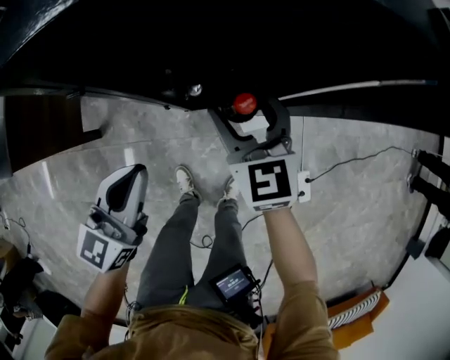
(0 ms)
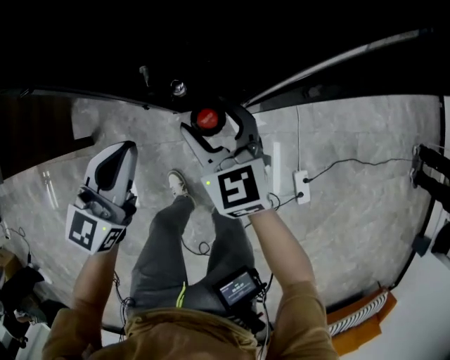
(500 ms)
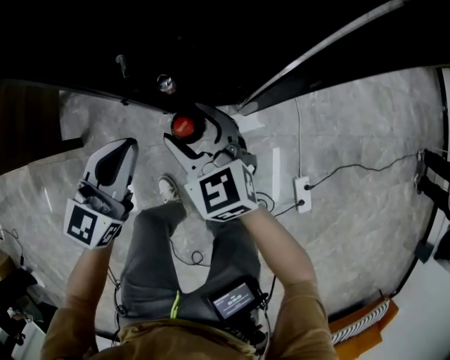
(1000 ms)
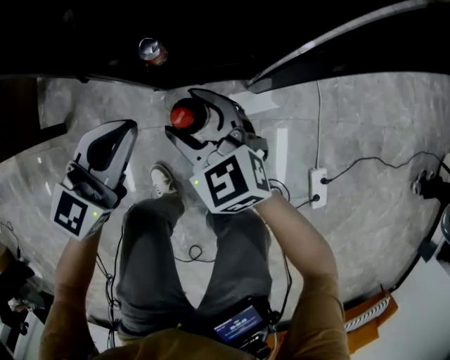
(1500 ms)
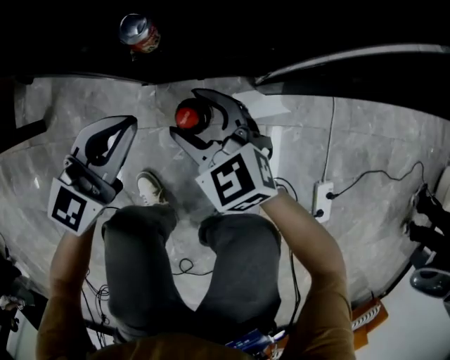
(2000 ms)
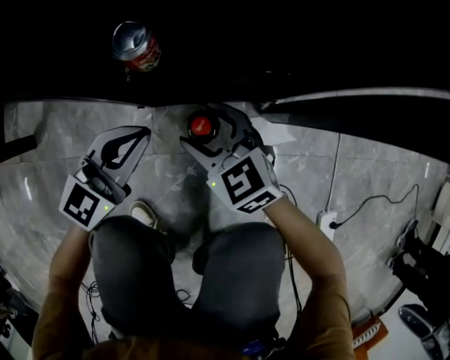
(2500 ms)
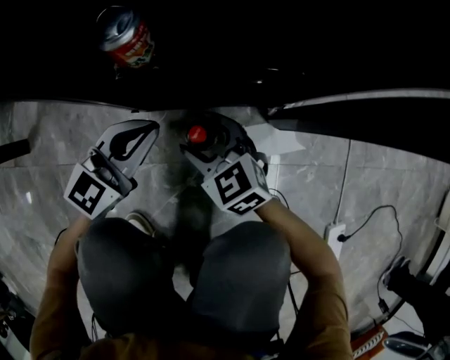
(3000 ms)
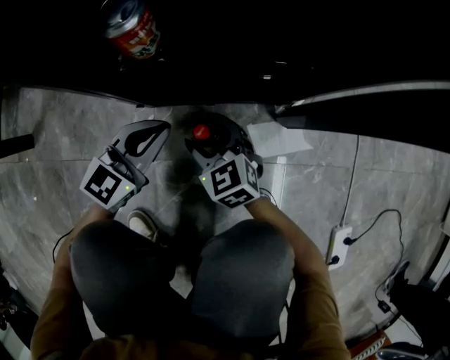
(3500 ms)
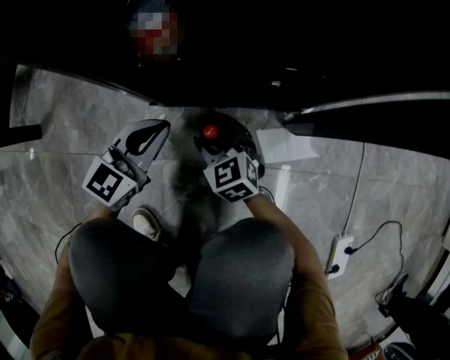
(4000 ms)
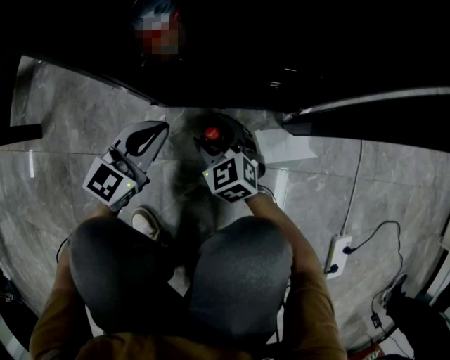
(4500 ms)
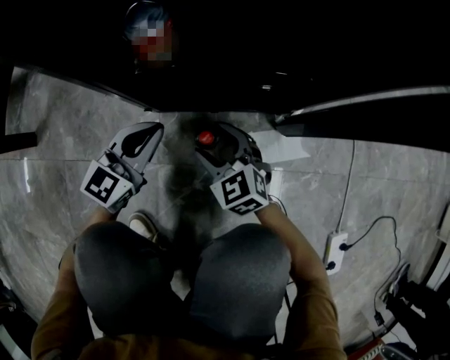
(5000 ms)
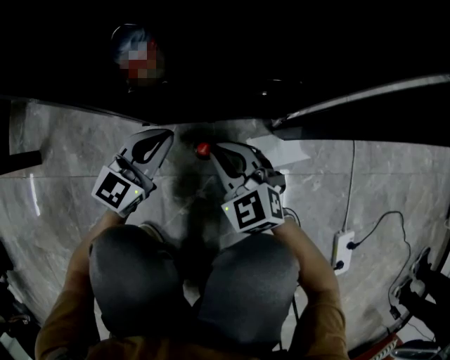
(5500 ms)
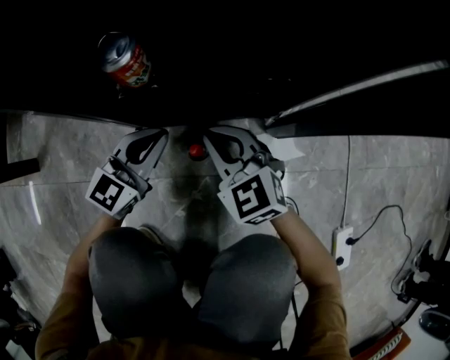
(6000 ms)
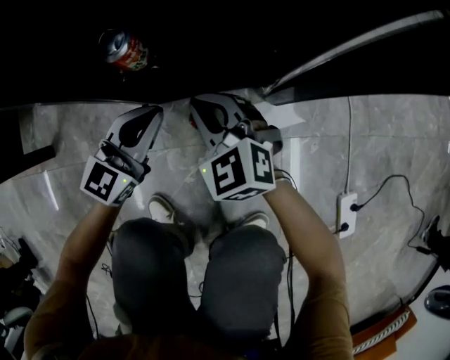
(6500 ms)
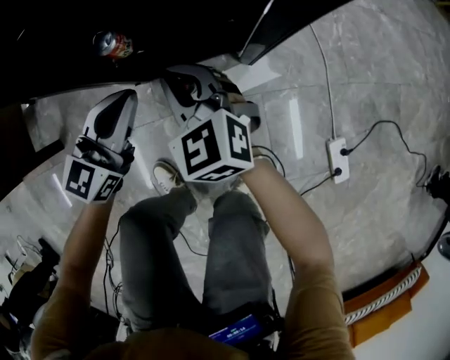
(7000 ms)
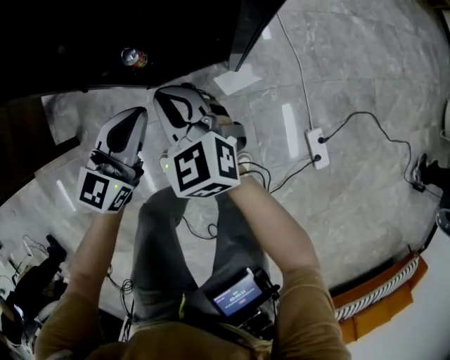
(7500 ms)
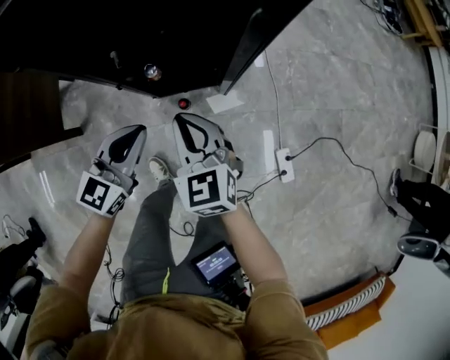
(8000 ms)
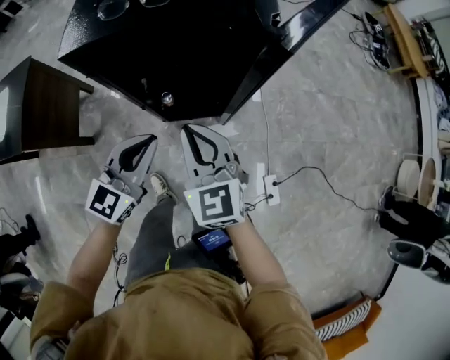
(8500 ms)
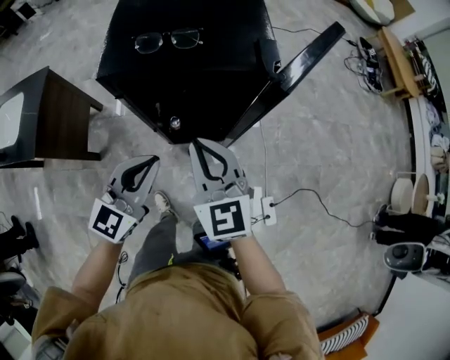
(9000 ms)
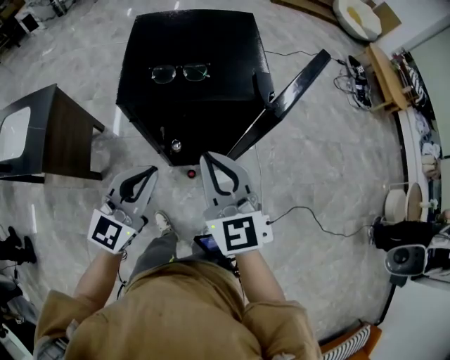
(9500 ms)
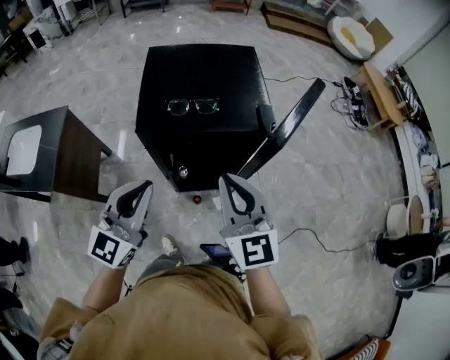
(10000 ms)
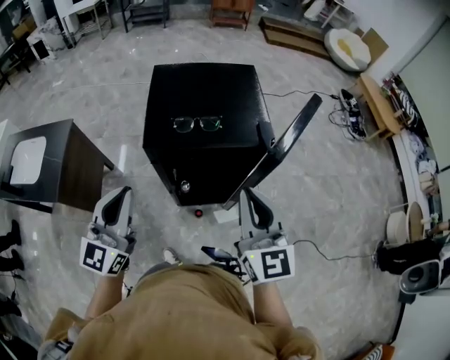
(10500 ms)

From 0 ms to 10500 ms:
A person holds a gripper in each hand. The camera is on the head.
From 0 ms to 2000 ms: The left gripper travels to the right by some 10 cm, goes downward and returns, some 30 cm each way, and turns by about 20 degrees; the right gripper shifts some 15 cm backward, travels downward and back again, approximately 35 cm each way, and turns by some 30 degrees.
From 2000 ms to 4000 ms: Both grippers travel together downward, approximately 20 cm.
From 4000 ms to 6500 ms: The right gripper heads upward, covering roughly 20 cm, and closes up; the left gripper moves upward, approximately 10 cm.
From 6500 ms to 8500 ms: Both grippers travel together upward, approximately 70 cm.
From 8500 ms to 10500 ms: The right gripper heads upward, covering approximately 25 cm, and turns by approximately 20 degrees; the left gripper heads upward and to the left, covering approximately 30 cm, and rotates roughly 20 degrees.

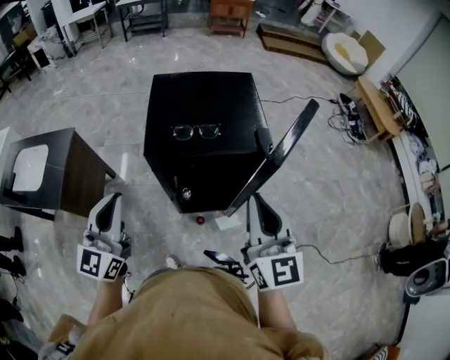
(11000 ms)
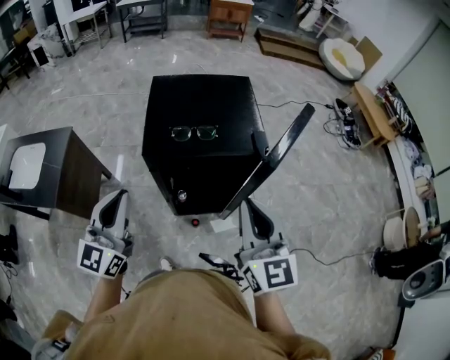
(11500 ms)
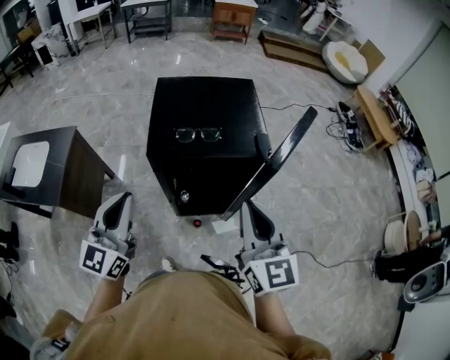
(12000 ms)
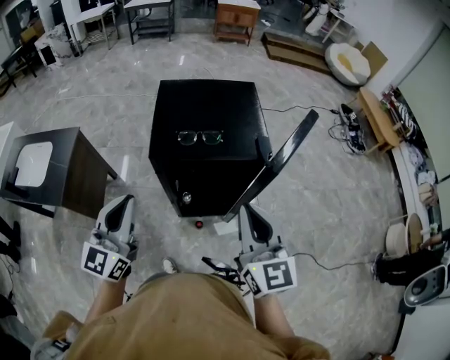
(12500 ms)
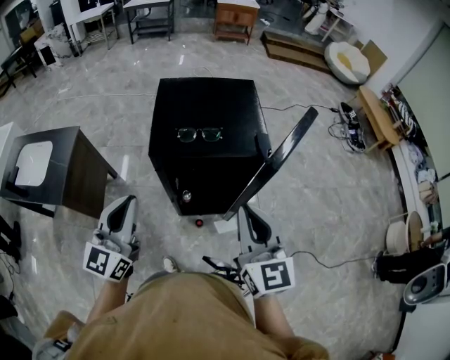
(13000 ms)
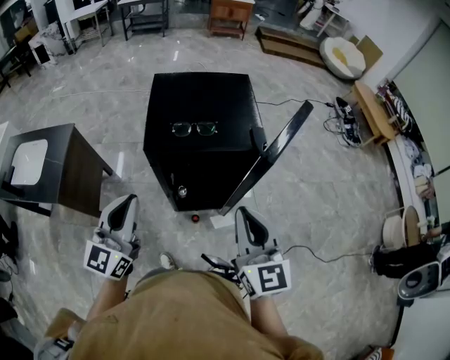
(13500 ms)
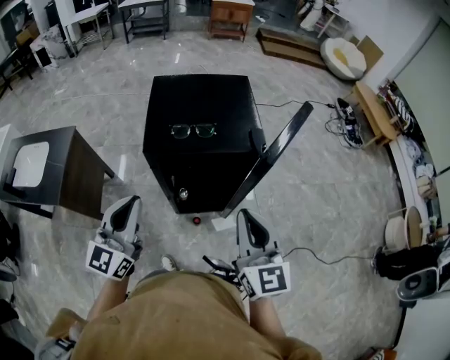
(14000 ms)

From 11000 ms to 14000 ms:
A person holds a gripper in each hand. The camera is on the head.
From 11000 ms to 14000 ms: The grippers move only a little.

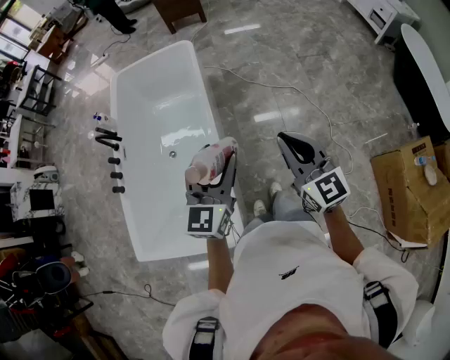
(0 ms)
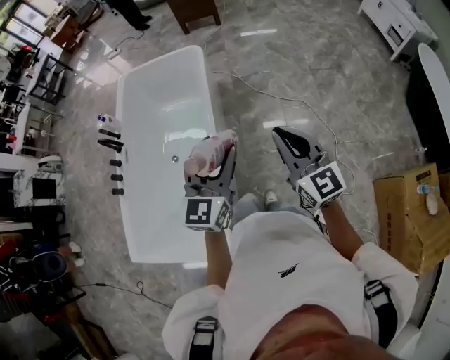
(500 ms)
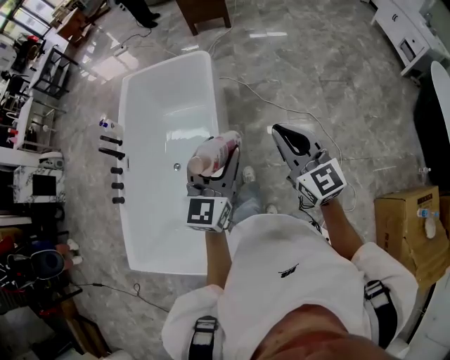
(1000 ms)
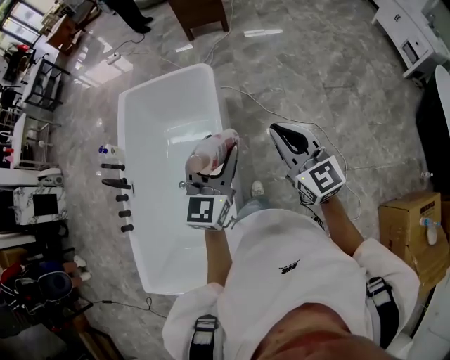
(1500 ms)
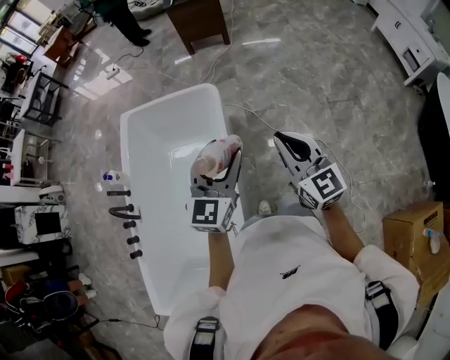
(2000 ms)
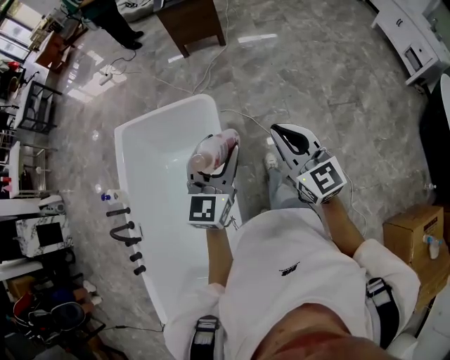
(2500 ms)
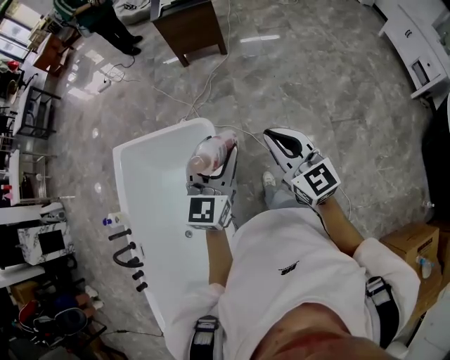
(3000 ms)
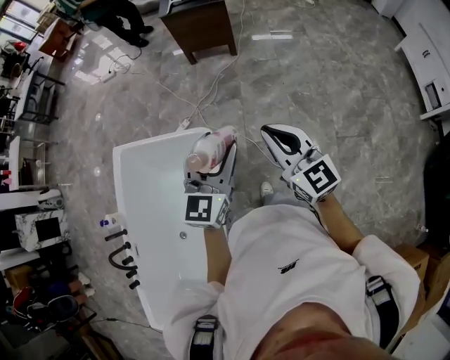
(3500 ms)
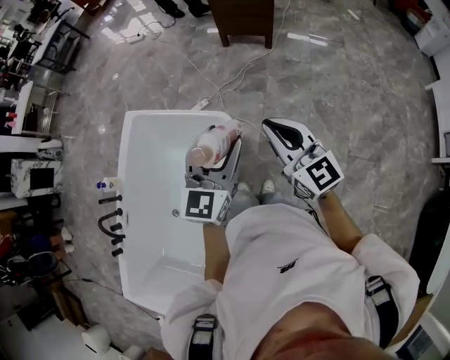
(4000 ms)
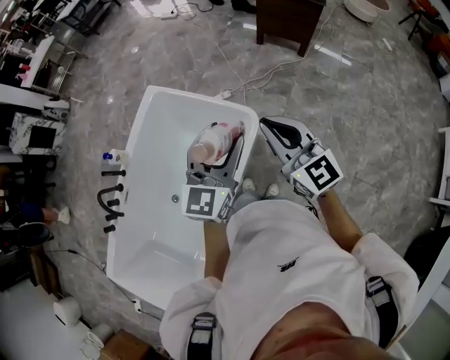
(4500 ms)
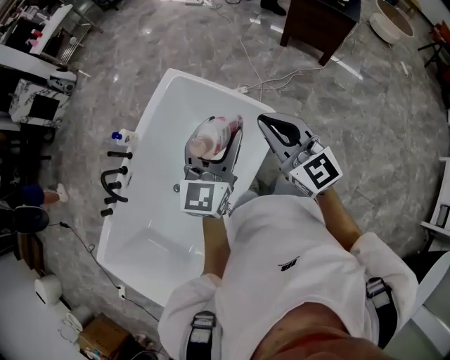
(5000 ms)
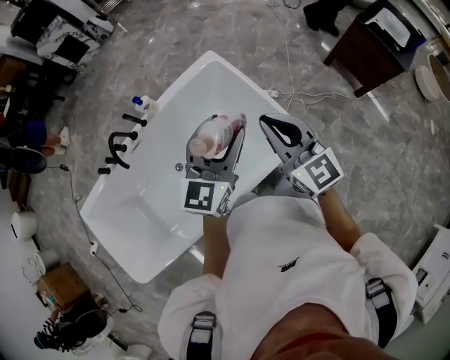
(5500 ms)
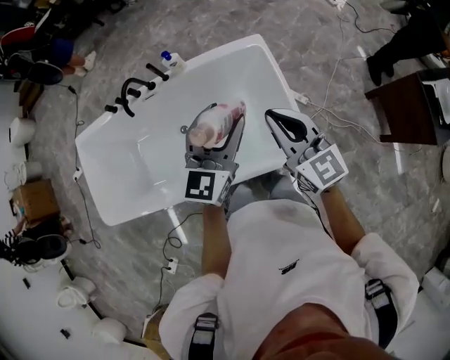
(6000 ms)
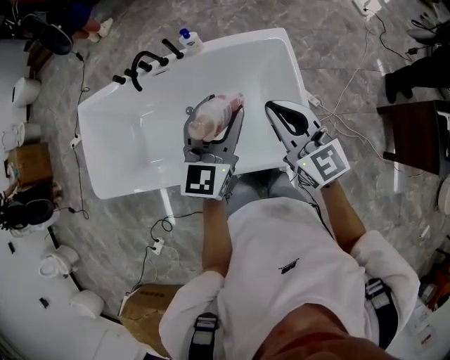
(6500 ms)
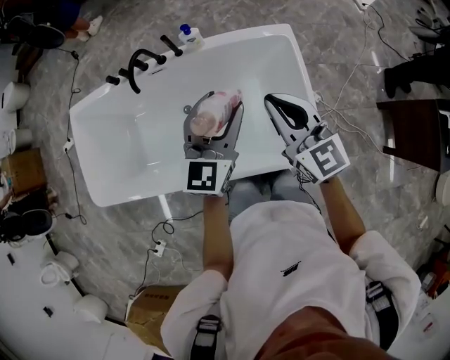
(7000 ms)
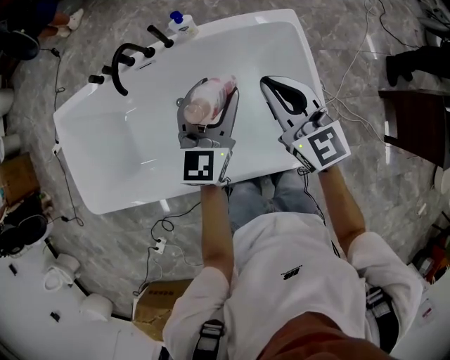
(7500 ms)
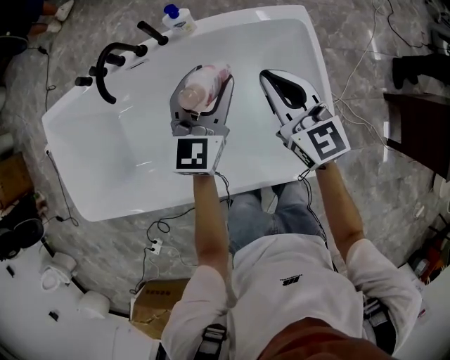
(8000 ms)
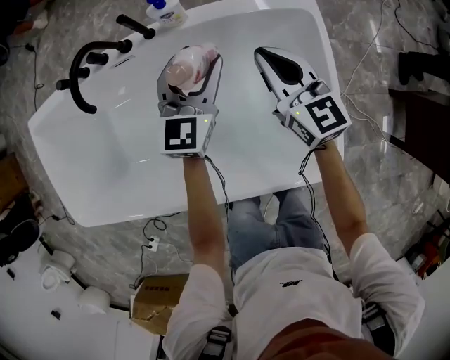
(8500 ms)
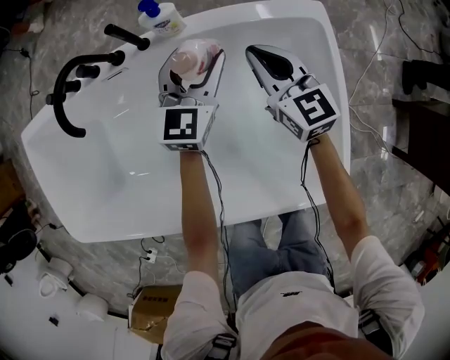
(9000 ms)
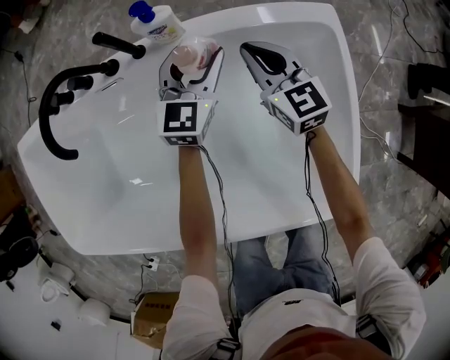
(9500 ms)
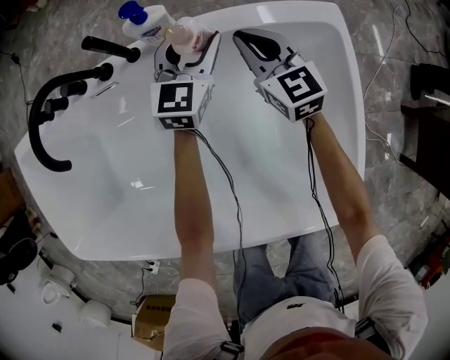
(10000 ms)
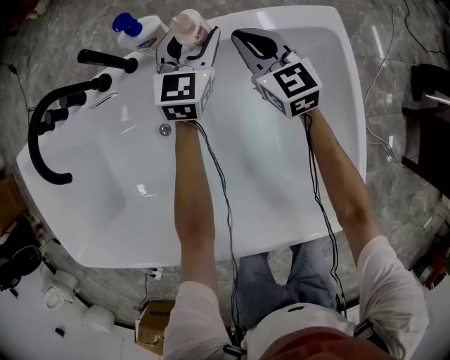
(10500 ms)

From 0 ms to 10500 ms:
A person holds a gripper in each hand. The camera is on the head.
From 0 ms to 2000 ms: Both grippers are carried forward, approximately 50 cm.
From 2000 ms to 4000 ms: The pair of grippers is taken forward, approximately 50 cm. The right gripper swivels some 20 degrees.
From 4000 ms to 6500 ms: The left gripper ends up some 40 cm from where it was, and changes its angle by about 70 degrees; the right gripper shifts by approximately 40 cm, and turns by some 70 degrees.
From 6500 ms to 8500 ms: The right gripper travels forward and downward by approximately 40 cm; the left gripper moves downward and forward, about 40 cm.
From 8500 ms to 10500 ms: The two grippers go some 25 cm downward and forward.

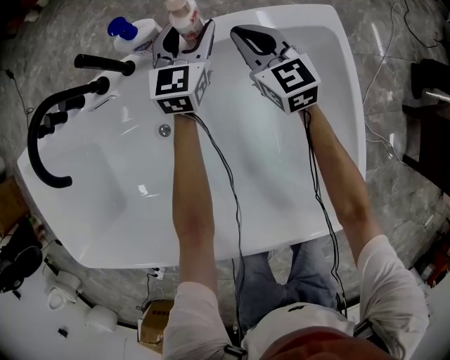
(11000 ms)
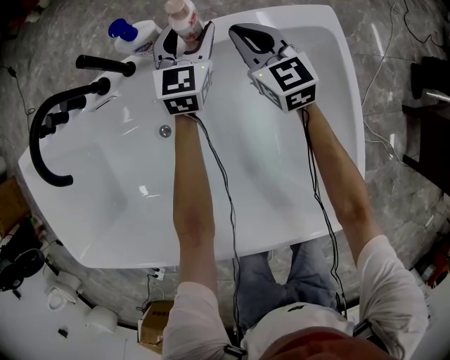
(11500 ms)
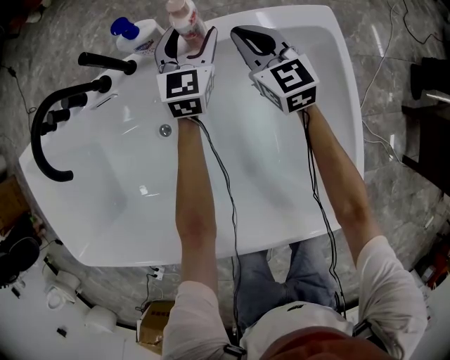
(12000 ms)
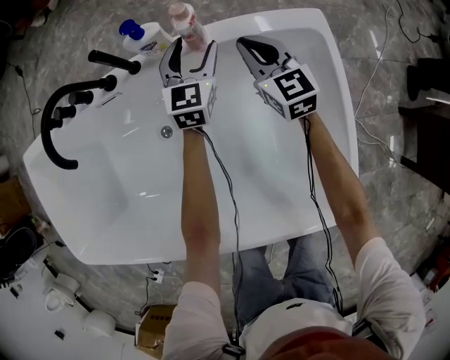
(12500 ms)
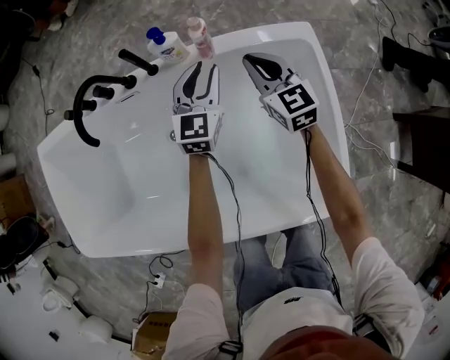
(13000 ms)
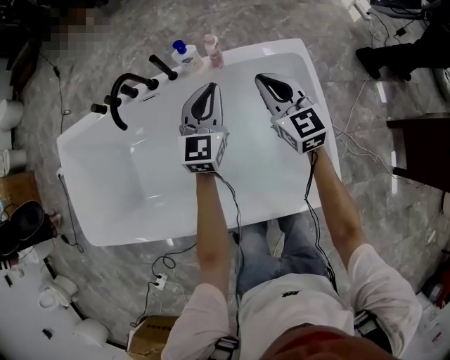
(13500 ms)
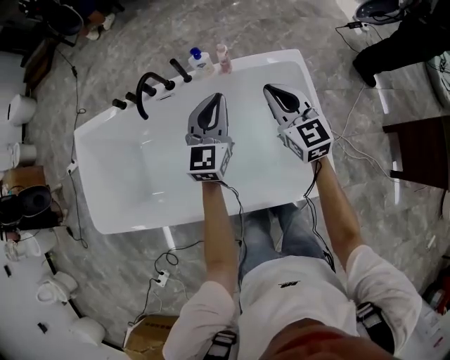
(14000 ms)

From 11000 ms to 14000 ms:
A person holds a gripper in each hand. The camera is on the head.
From 11000 ms to 12500 ms: The left gripper goes roughly 5 cm backward, while the right gripper ends up some 5 cm from where it was.
From 12500 ms to 14000 ms: Both grippers travel together upward and backward, approximately 40 cm. The left gripper closes its fingers.
